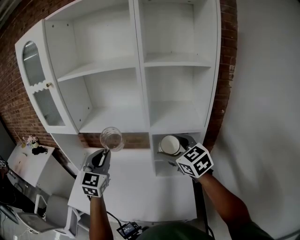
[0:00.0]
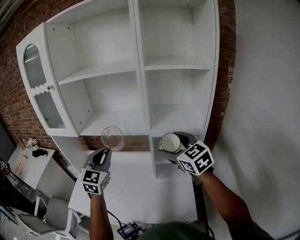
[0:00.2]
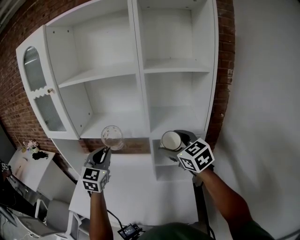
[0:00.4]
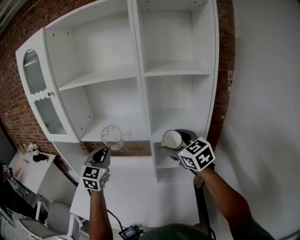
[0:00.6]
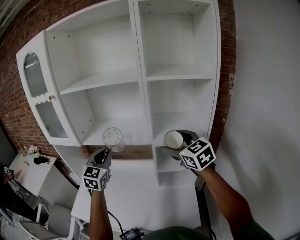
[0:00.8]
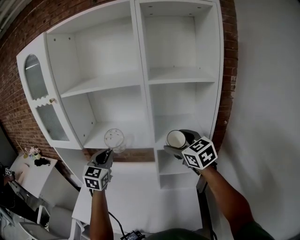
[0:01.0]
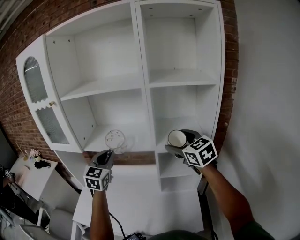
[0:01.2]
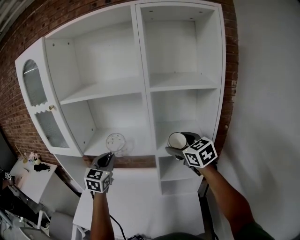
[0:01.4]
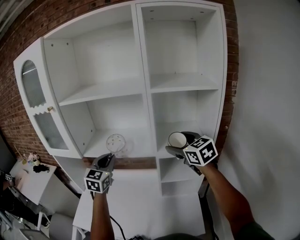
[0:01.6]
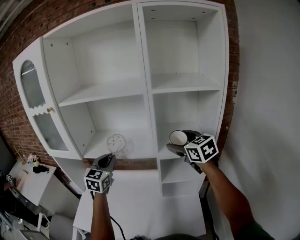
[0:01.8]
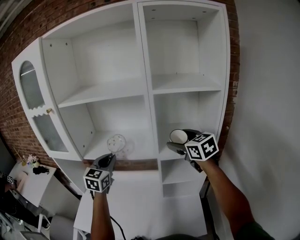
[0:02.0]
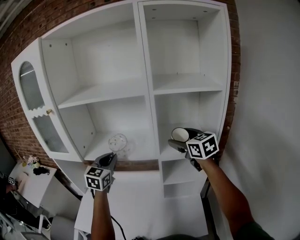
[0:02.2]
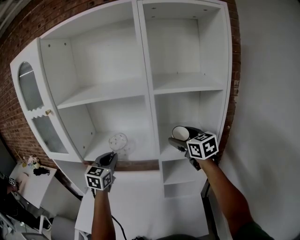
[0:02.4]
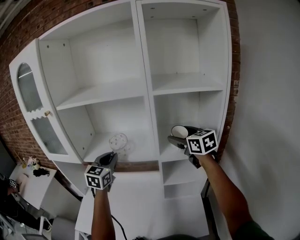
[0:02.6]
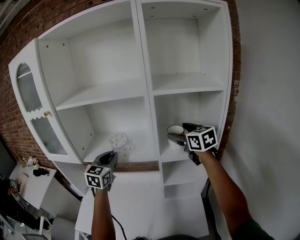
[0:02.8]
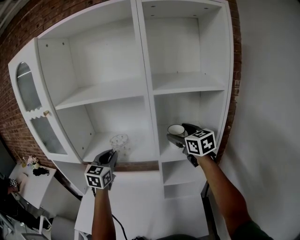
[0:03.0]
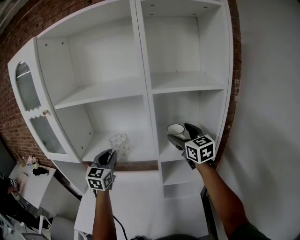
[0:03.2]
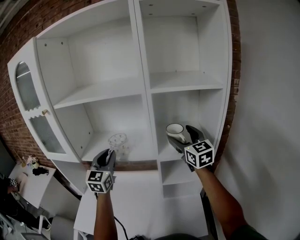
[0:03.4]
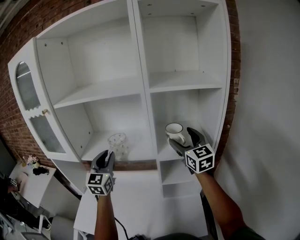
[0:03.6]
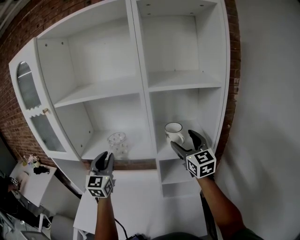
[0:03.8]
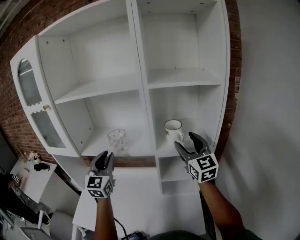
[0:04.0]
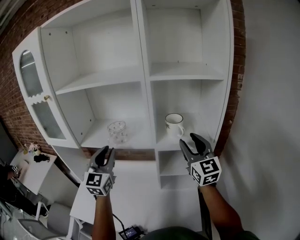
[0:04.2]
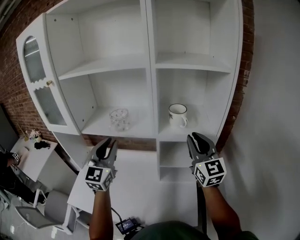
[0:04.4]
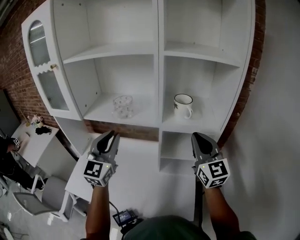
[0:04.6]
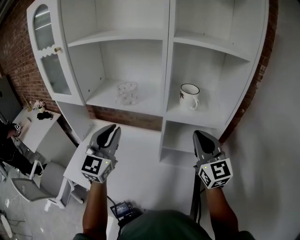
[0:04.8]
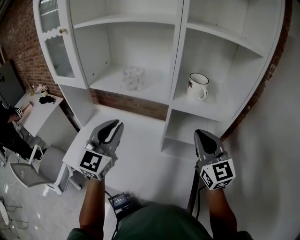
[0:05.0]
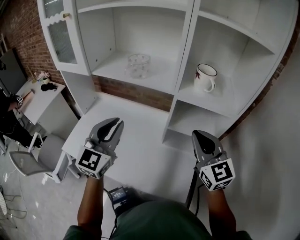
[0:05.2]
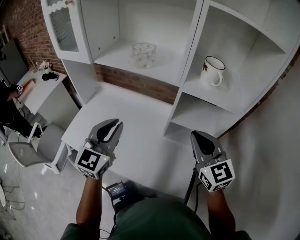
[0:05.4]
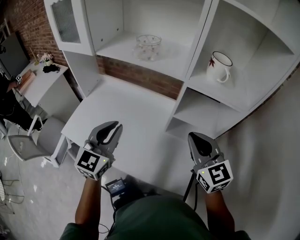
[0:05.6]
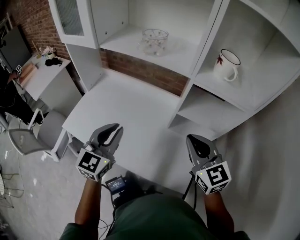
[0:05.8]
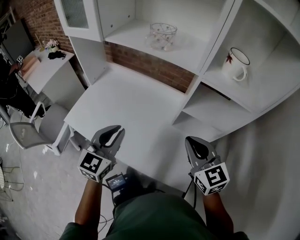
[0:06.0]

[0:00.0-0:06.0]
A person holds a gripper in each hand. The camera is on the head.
0:00.0 to 0:01.6: The left gripper goes roughly 10 cm forward, while the right gripper moves forward and upward, some 10 cm.
0:01.6 to 0:03.0: The right gripper is displaced forward by some 5 cm. Meanwhile the left gripper ends up about 5 cm from where it was.
0:03.0 to 0:04.4: Both grippers travel together backward, approximately 10 cm. The right gripper changes its angle by some 20 degrees, and closes.
0:04.4 to 0:06.0: The left gripper goes approximately 25 cm downward and backward, and swivels roughly 20 degrees. The right gripper goes approximately 25 cm downward, to the left and backward, and turns by approximately 40 degrees.

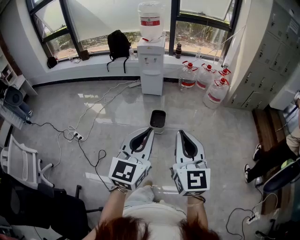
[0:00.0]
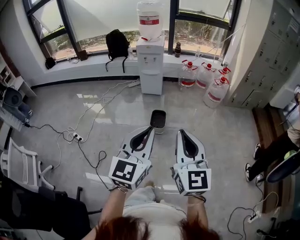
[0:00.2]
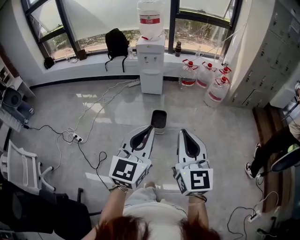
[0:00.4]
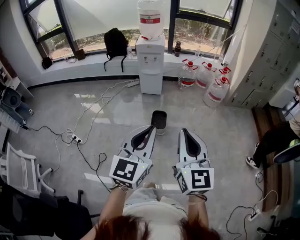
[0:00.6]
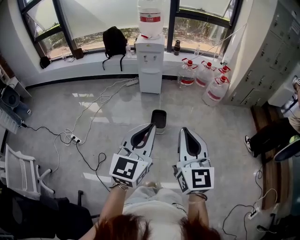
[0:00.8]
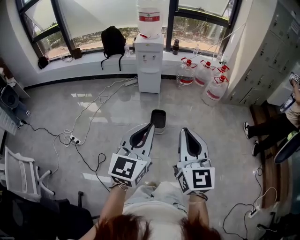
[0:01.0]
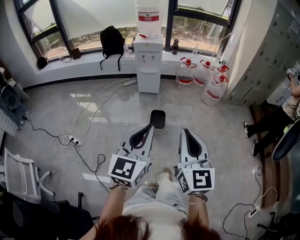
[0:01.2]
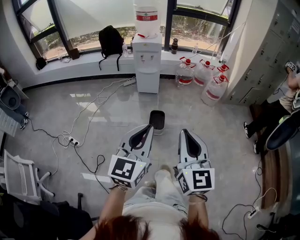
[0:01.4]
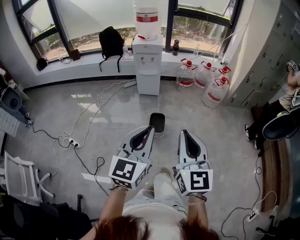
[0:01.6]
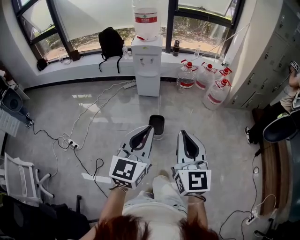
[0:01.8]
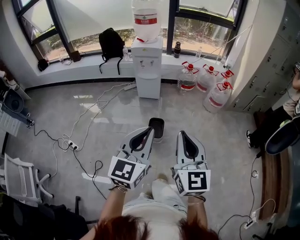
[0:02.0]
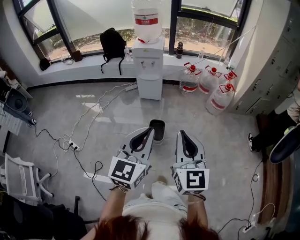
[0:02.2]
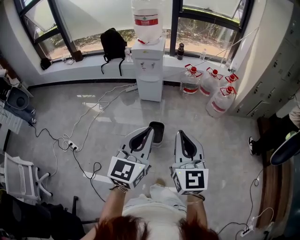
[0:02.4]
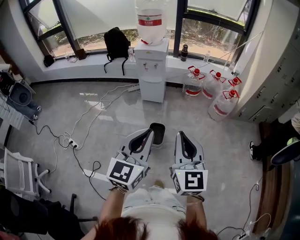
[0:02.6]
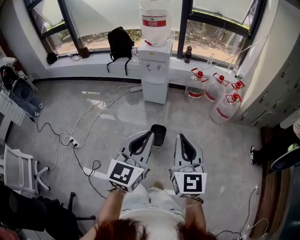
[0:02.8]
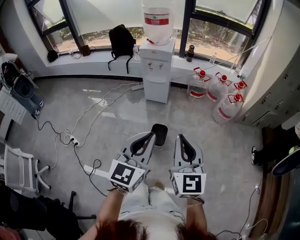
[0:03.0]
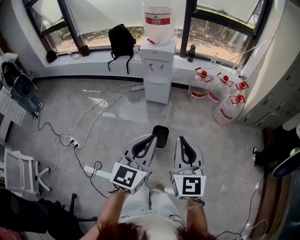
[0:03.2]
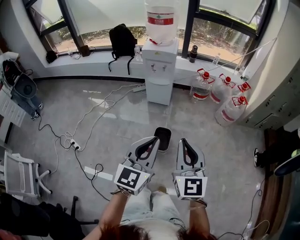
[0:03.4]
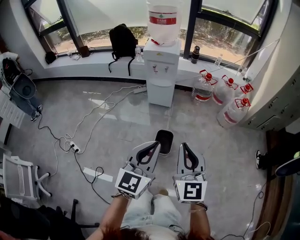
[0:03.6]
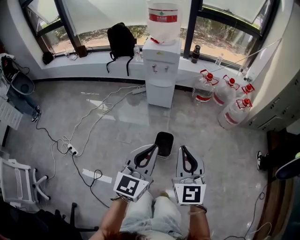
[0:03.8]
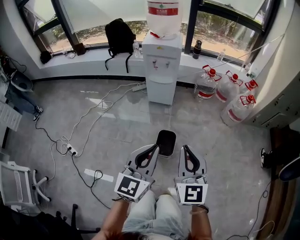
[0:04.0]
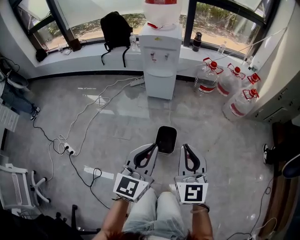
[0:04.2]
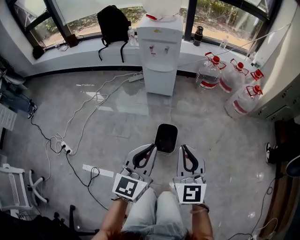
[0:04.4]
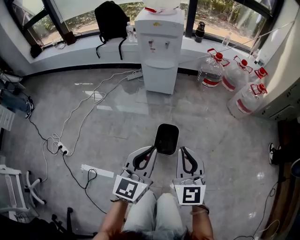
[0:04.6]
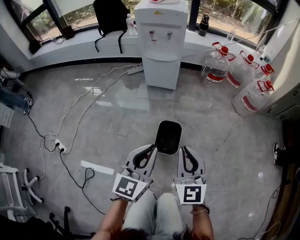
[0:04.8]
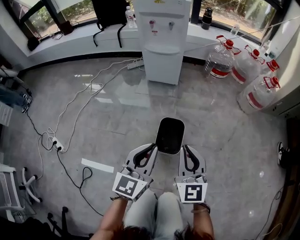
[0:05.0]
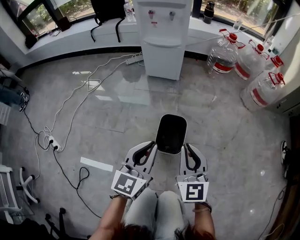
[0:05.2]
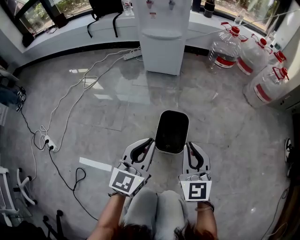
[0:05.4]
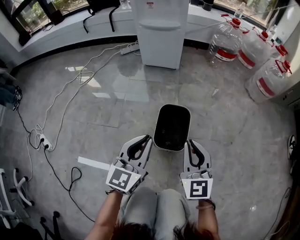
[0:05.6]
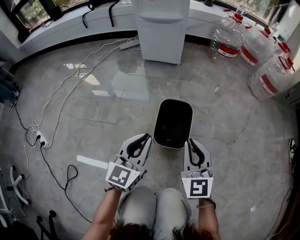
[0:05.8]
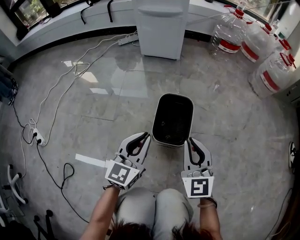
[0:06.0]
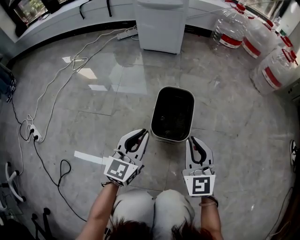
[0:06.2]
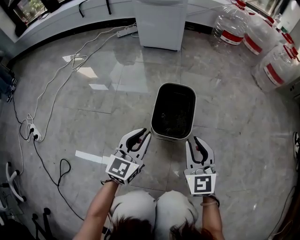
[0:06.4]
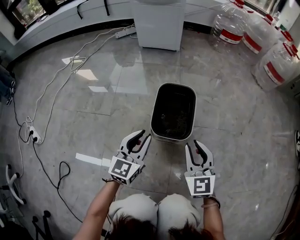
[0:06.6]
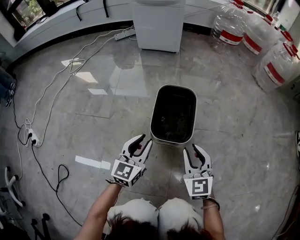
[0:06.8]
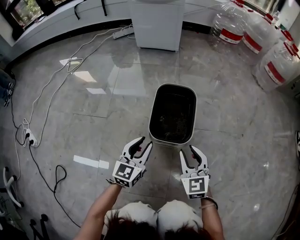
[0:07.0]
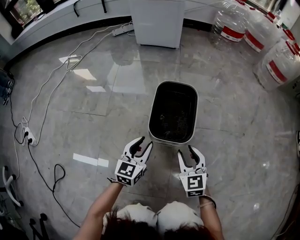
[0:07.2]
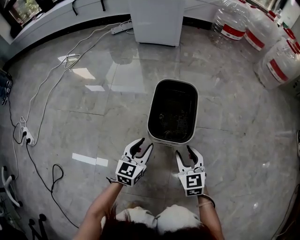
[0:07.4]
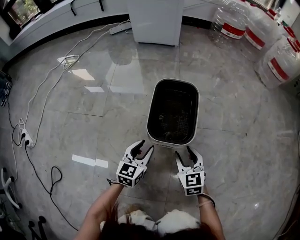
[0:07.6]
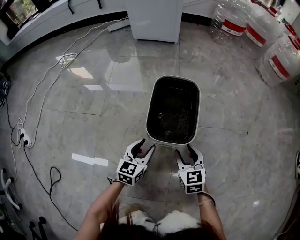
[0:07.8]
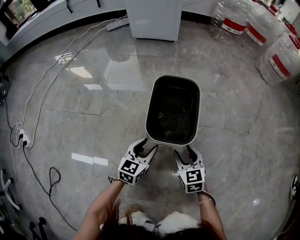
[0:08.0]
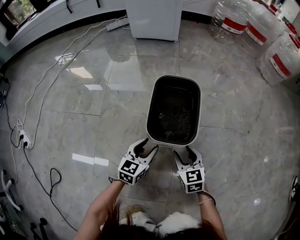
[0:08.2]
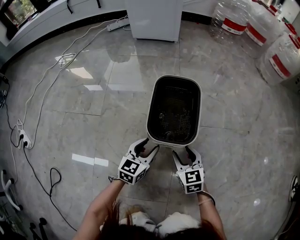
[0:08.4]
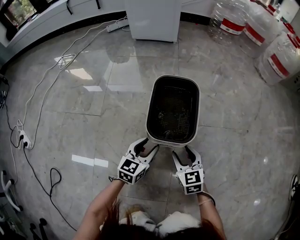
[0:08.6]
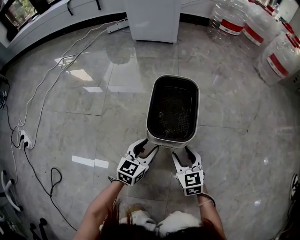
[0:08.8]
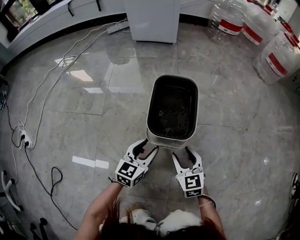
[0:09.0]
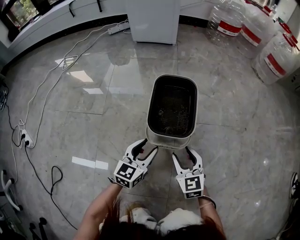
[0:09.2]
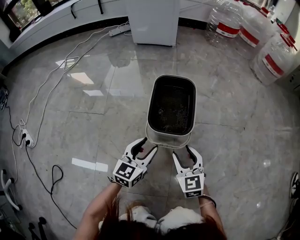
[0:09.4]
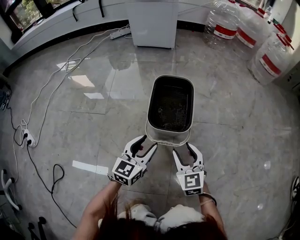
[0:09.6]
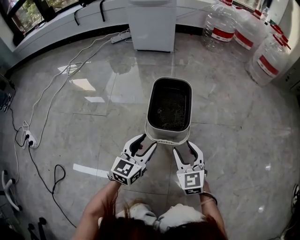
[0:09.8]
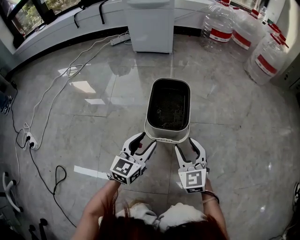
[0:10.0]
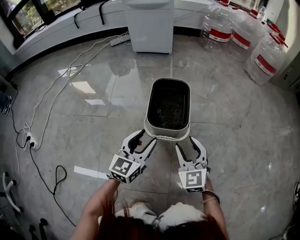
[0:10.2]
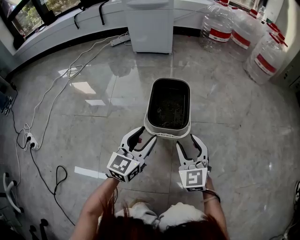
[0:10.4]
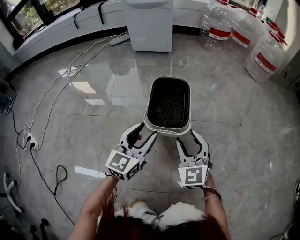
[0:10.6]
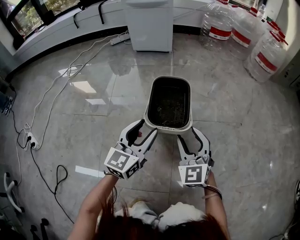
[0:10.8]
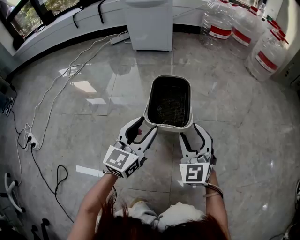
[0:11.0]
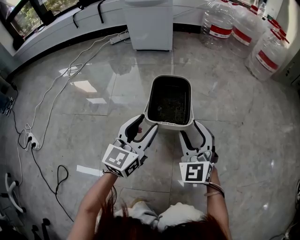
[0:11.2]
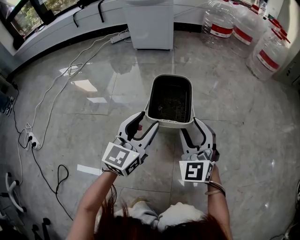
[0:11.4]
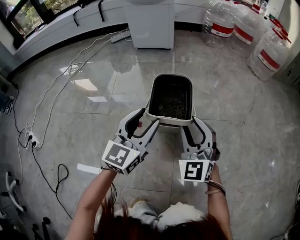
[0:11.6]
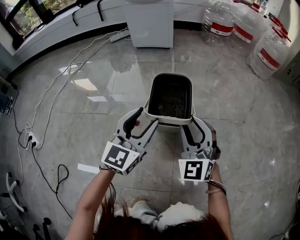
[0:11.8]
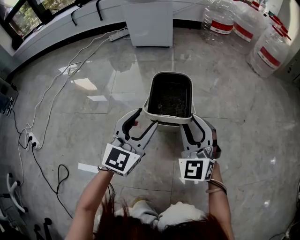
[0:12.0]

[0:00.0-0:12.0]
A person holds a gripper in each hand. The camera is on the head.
0:00.0 to 0:01.6: The right gripper moves forward, approximately 10 cm. The left gripper travels forward and to the left by approximately 15 cm.
0:01.6 to 0:03.0: Both grippers travel together forward, about 20 cm.
0:03.0 to 0:04.4: Both grippers move downward and forward, roughly 30 cm.
0:04.4 to 0:06.0: The grippers both shift downward by some 50 cm.
0:06.0 to 0:07.6: Both grippers move downward, some 25 cm. The left gripper opens up. The right gripper changes its angle by some 20 degrees, and opens up.
0:07.6 to 0:09.0: The grippers stay close to where they were, moving slightly.
0:09.0 to 0:10.4: Both grippers move upward, about 15 cm. The right gripper swivels approximately 20 degrees.
0:10.4 to 0:12.0: The grippers both shift upward by roughly 5 cm.

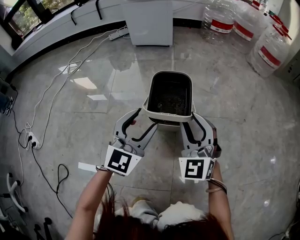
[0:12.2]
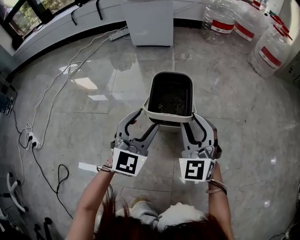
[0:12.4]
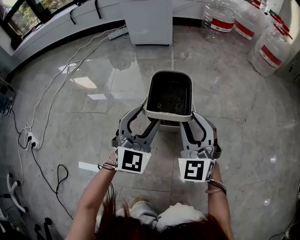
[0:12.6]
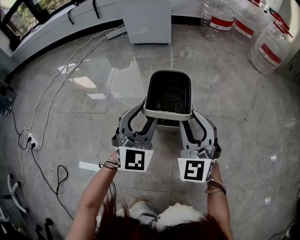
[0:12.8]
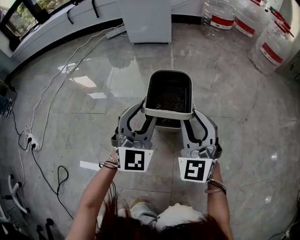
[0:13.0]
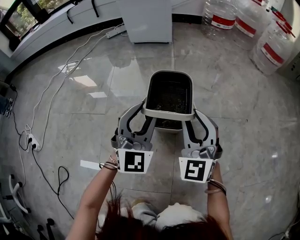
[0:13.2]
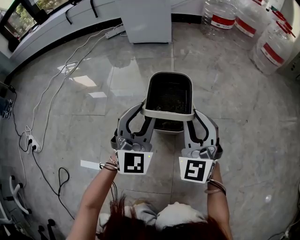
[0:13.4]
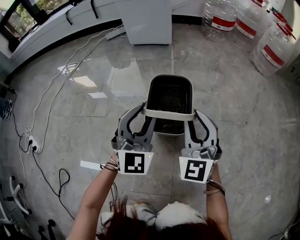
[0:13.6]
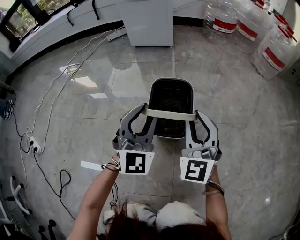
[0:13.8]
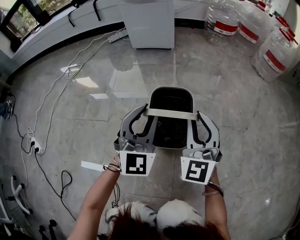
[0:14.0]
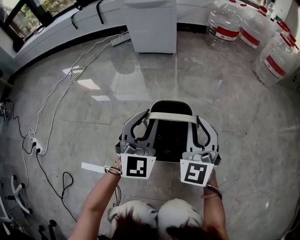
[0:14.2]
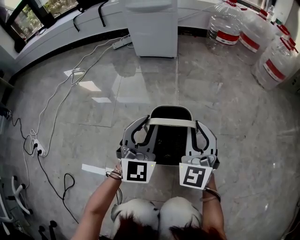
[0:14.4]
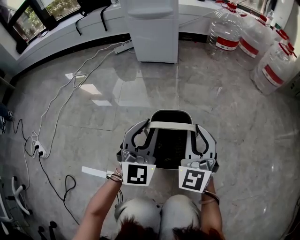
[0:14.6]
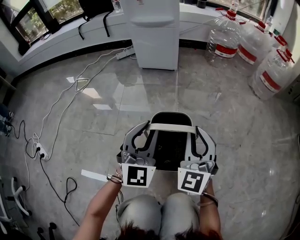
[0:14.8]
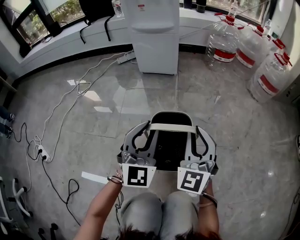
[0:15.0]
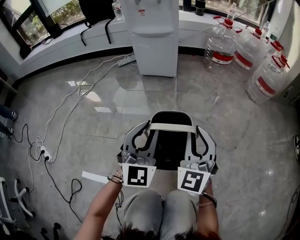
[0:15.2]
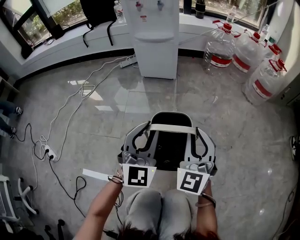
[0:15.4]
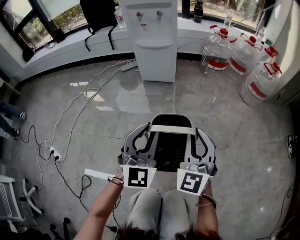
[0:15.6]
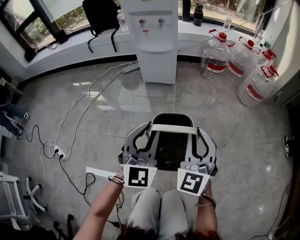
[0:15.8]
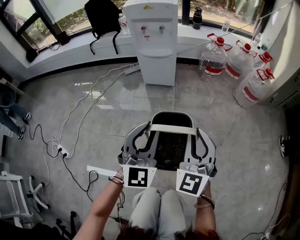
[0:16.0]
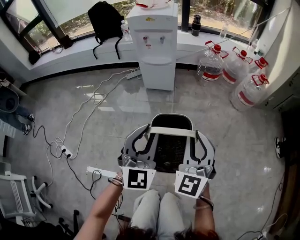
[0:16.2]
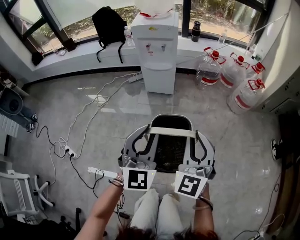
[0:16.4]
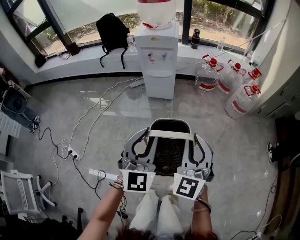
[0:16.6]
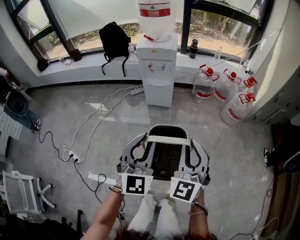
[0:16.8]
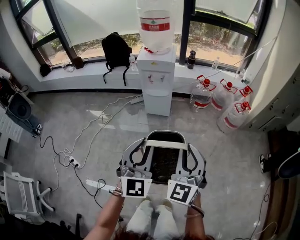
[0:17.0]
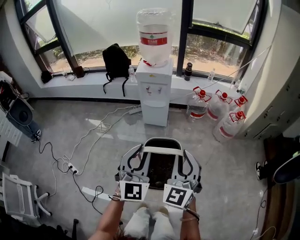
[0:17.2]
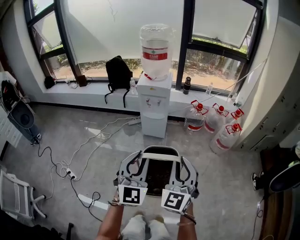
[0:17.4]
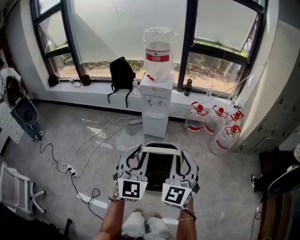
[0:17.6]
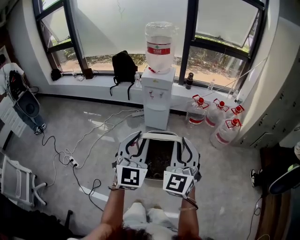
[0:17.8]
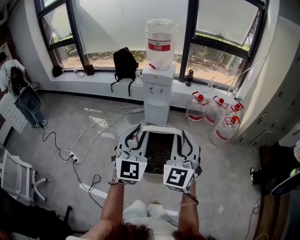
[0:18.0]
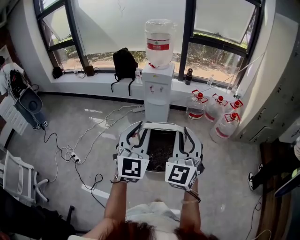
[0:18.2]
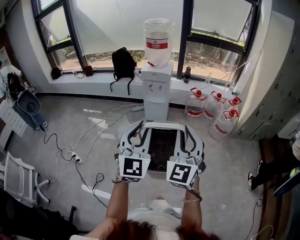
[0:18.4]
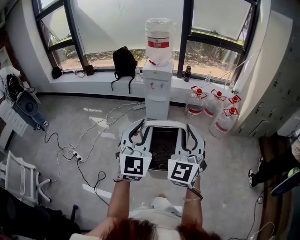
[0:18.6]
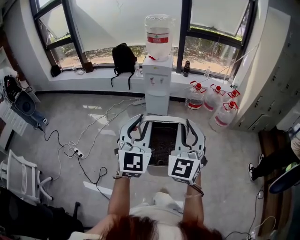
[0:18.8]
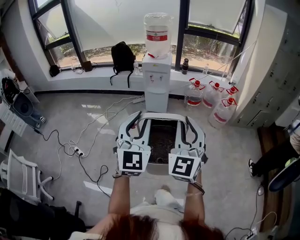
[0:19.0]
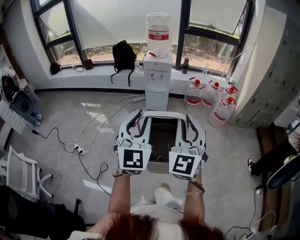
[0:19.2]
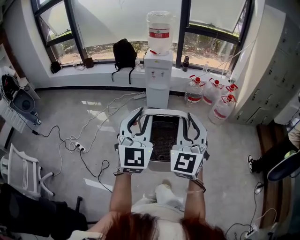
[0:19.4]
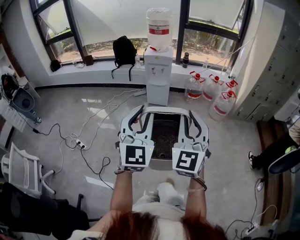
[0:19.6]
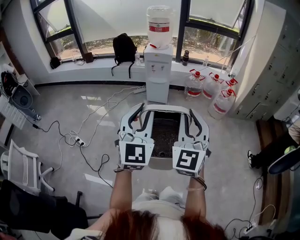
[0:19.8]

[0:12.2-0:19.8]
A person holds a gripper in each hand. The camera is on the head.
0:12.2 to 0:13.8: The left gripper moves forward, roughly 5 cm, and closes. The right gripper ends up roughly 5 cm from where it was.
0:13.8 to 0:15.2: Both grippers move upward, about 15 cm.
0:15.2 to 0:16.8: The grippers both shift upward by some 50 cm.
0:16.8 to 0:18.2: The grippers both shift upward and backward by about 20 cm.
0:18.2 to 0:19.8: The grippers both shift backward by about 20 cm.
